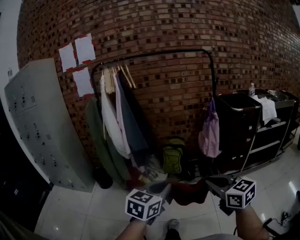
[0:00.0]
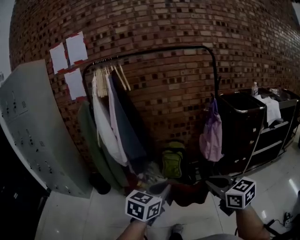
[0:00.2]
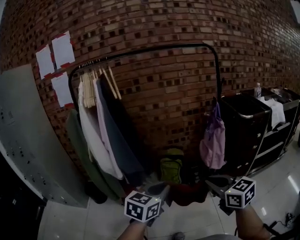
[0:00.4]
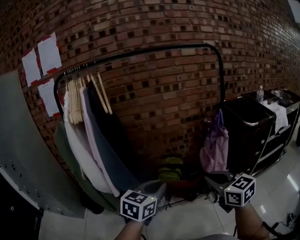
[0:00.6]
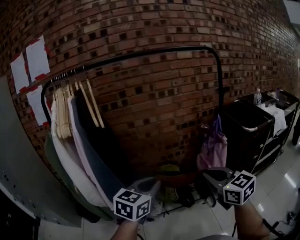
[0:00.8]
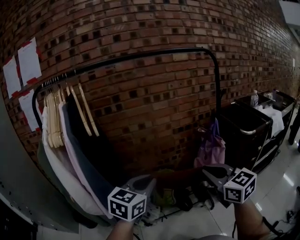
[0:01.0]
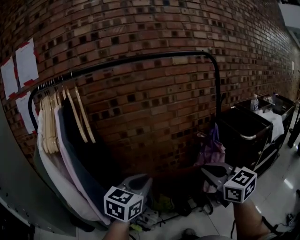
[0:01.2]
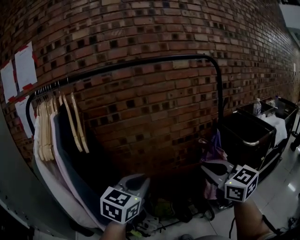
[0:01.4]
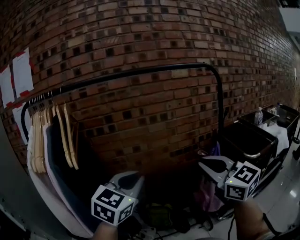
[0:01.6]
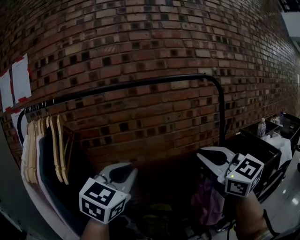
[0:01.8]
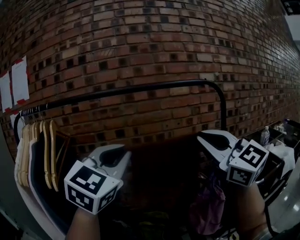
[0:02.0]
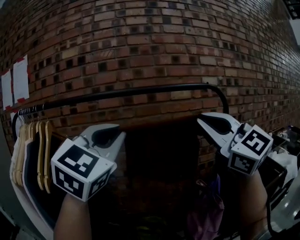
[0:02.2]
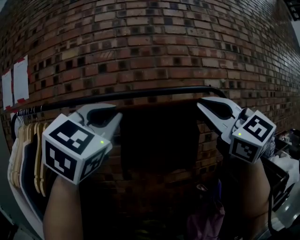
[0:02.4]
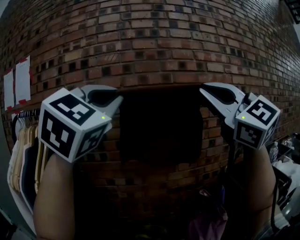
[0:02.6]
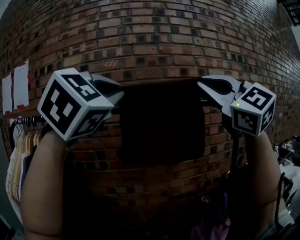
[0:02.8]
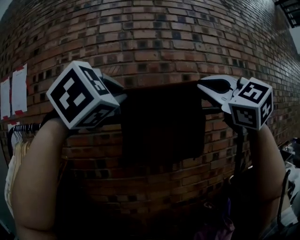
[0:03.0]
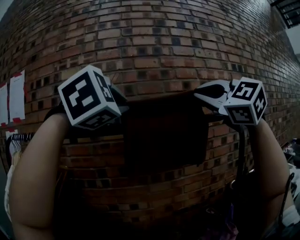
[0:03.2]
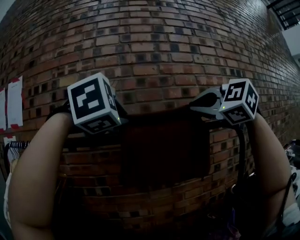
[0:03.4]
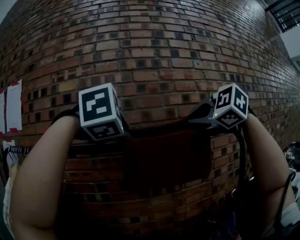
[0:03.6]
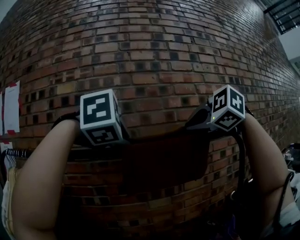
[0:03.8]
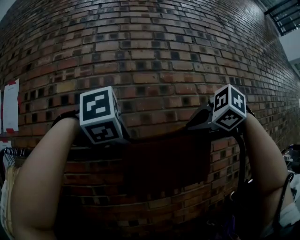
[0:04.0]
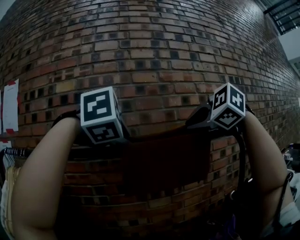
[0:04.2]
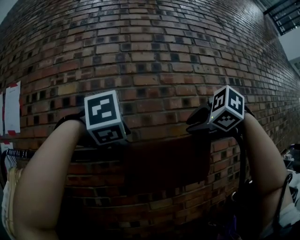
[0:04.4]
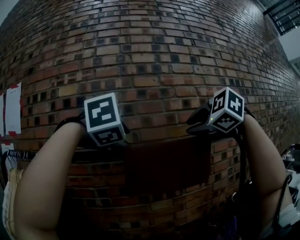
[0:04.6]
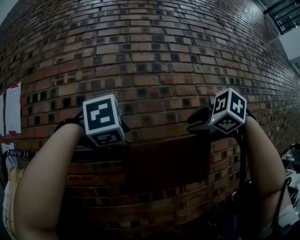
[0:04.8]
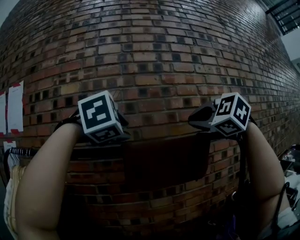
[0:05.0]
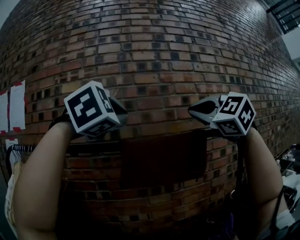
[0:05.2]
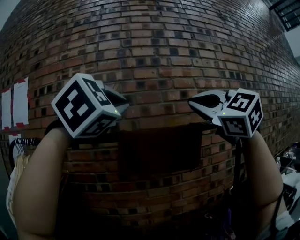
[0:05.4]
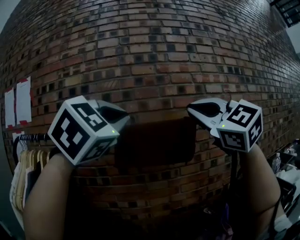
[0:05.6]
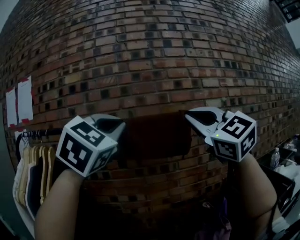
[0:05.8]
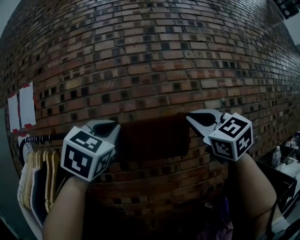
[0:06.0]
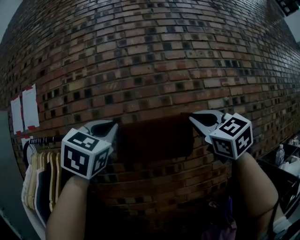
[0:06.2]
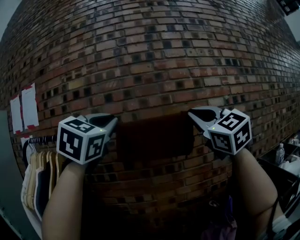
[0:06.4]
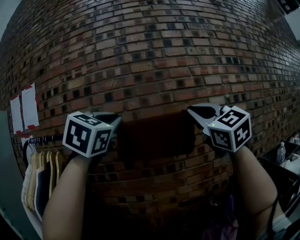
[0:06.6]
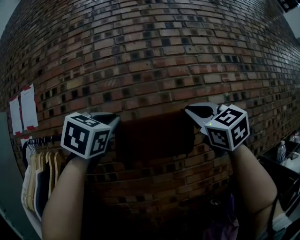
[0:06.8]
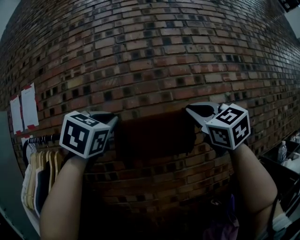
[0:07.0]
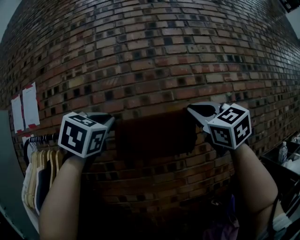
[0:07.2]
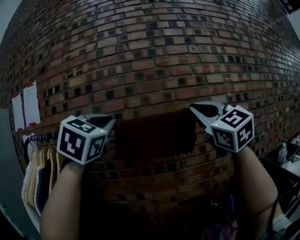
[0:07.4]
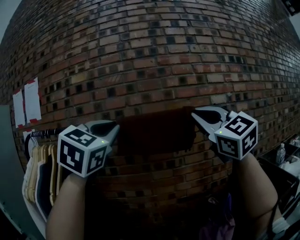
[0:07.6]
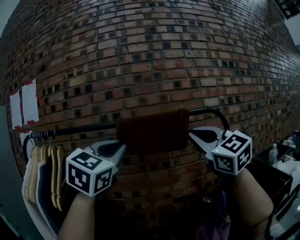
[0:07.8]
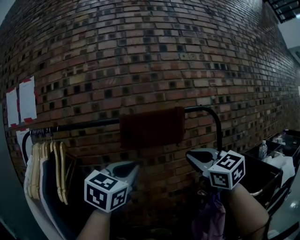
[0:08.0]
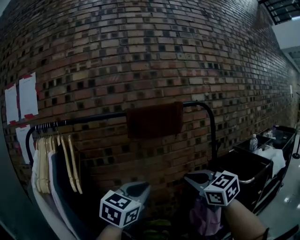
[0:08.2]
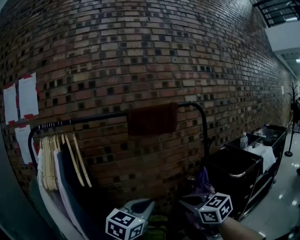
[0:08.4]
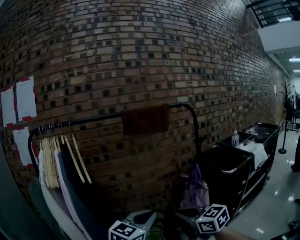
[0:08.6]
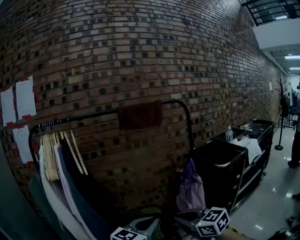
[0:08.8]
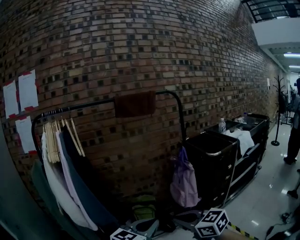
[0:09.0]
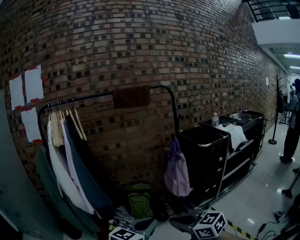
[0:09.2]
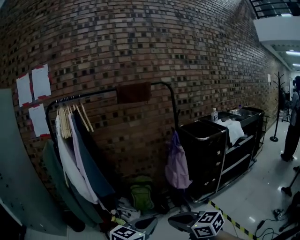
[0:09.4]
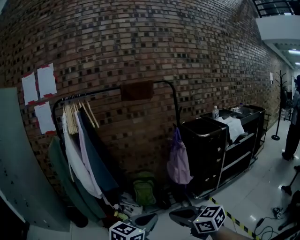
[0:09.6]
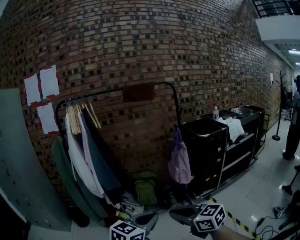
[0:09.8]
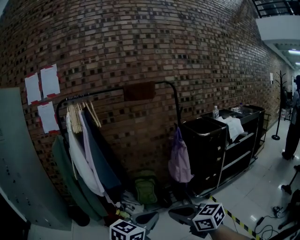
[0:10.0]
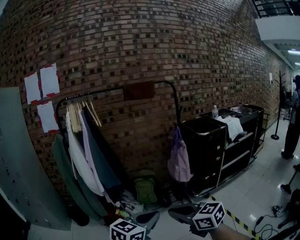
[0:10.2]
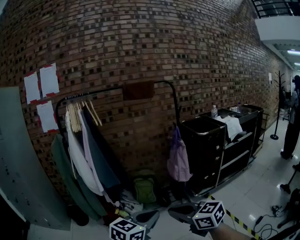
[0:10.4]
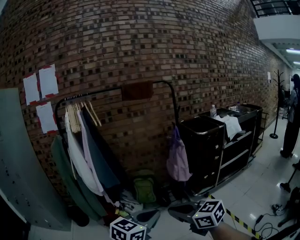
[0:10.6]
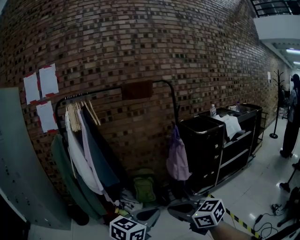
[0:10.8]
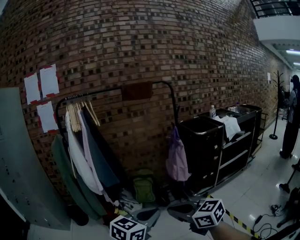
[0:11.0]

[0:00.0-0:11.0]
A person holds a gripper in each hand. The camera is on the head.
0:00.0 to 0:01.6: The two grippers travel together, forward, about 60 cm. The right gripper changes its angle by about 20 degrees; the left gripper changes its angle by roughly 20 degrees.
0:01.6 to 0:03.2: The grippers both shift upward and forward by roughly 40 cm. The left gripper rotates around the line of its fingers by approximately 50 degrees, clockwise from behind. Meanwhile the right gripper rotates around the line of its fingers by some 40 degrees, counterclockwise from behind.
0:03.2 to 0:04.8: The two grippers go approximately 5 cm forward. The left gripper opens its fingers. The right gripper rotates approximately 30 degrees, and opens.
0:04.8 to 0:06.2: Both grippers move backward, approximately 10 cm. The left gripper angles its fingers upward, by about 50 degrees, and closes up. The right gripper tips its fingers upward by about 40 degrees, and closes.
0:06.2 to 0:07.8: Both grippers travel together downward, roughly 5 cm.
0:07.8 to 0:09.4: Both grippers are carried backward, roughly 70 cm. The two grippers go roughly 40 cm downward. The right gripper turns by about 50 degrees. Meanwhile the left gripper changes its angle by about 50 degrees.
0:09.4 to 0:11.0: The two grippers go some 10 cm backward.

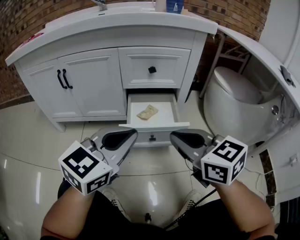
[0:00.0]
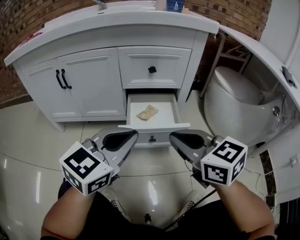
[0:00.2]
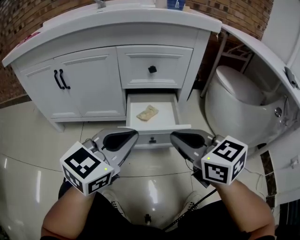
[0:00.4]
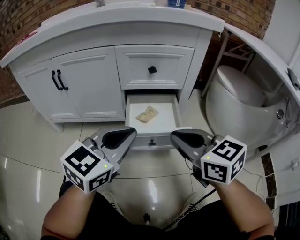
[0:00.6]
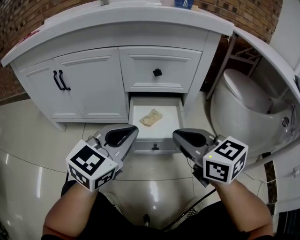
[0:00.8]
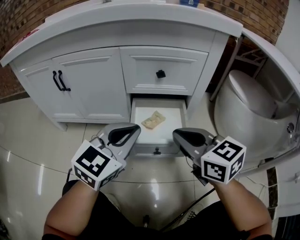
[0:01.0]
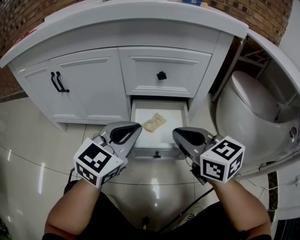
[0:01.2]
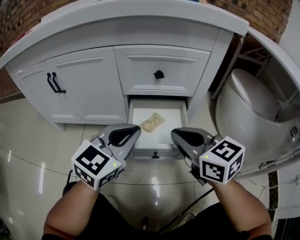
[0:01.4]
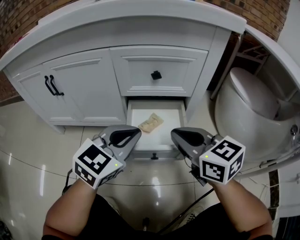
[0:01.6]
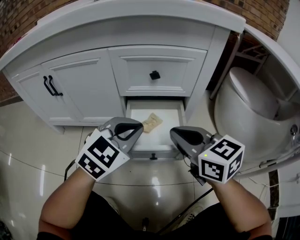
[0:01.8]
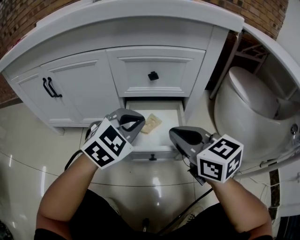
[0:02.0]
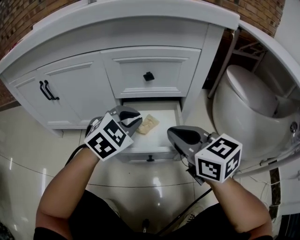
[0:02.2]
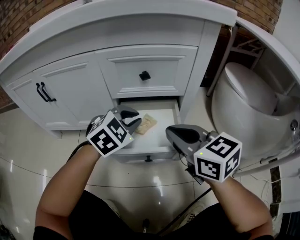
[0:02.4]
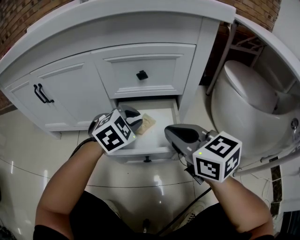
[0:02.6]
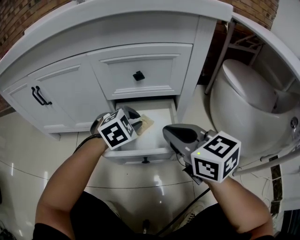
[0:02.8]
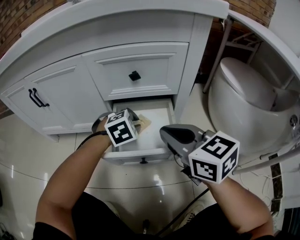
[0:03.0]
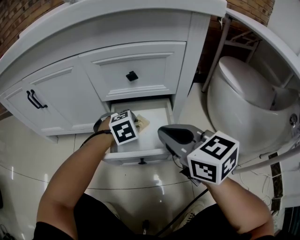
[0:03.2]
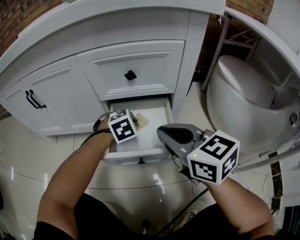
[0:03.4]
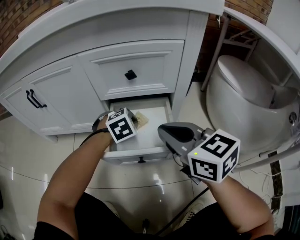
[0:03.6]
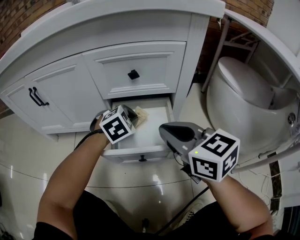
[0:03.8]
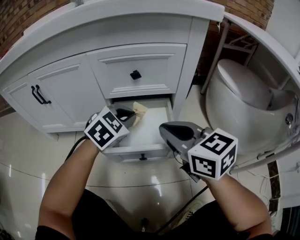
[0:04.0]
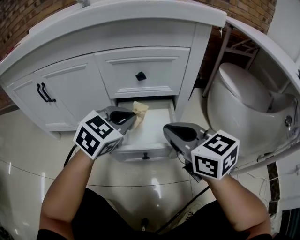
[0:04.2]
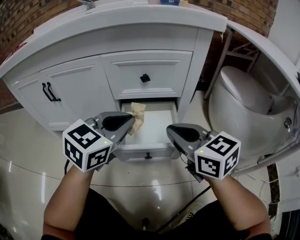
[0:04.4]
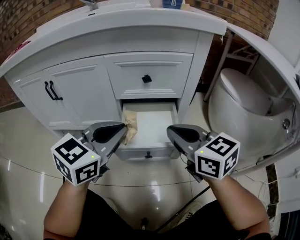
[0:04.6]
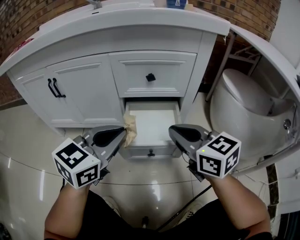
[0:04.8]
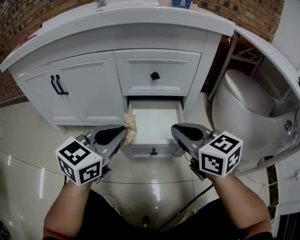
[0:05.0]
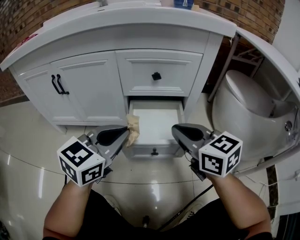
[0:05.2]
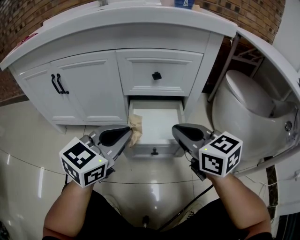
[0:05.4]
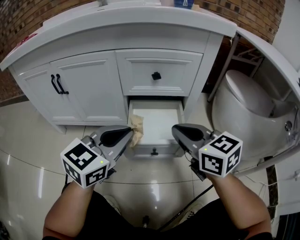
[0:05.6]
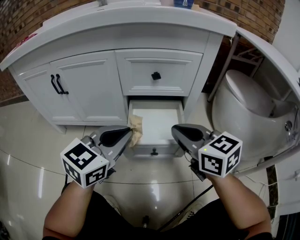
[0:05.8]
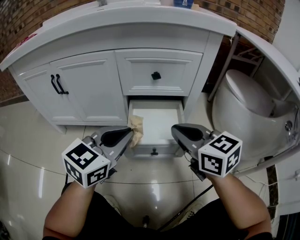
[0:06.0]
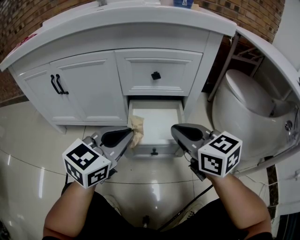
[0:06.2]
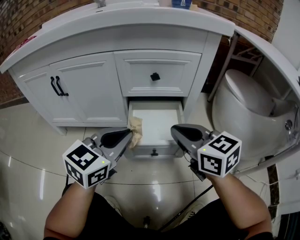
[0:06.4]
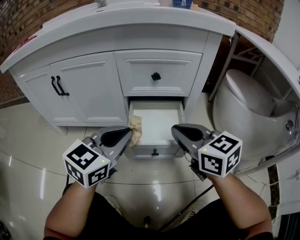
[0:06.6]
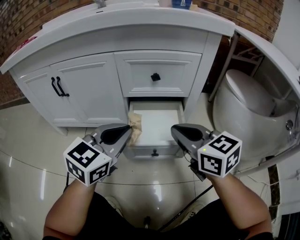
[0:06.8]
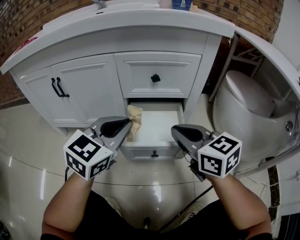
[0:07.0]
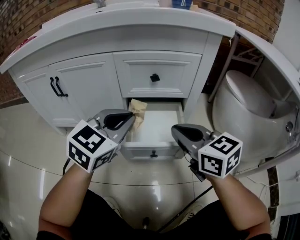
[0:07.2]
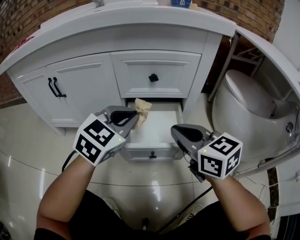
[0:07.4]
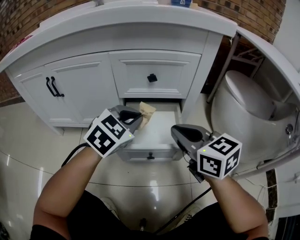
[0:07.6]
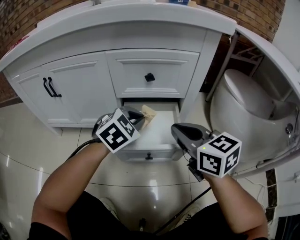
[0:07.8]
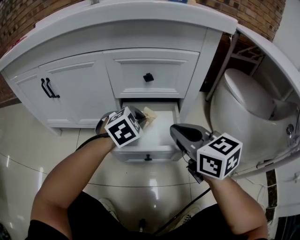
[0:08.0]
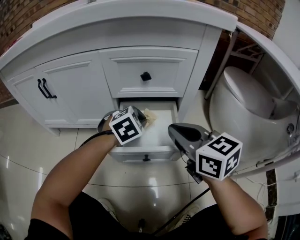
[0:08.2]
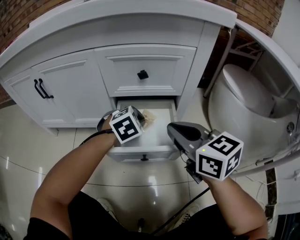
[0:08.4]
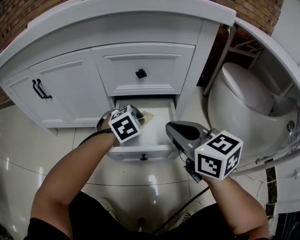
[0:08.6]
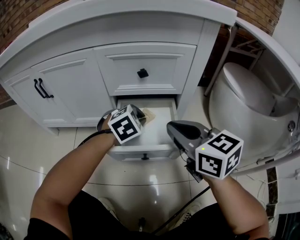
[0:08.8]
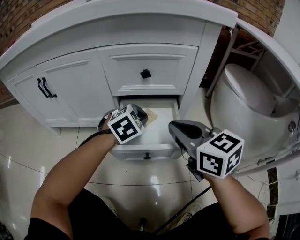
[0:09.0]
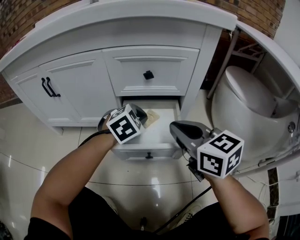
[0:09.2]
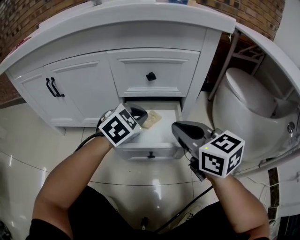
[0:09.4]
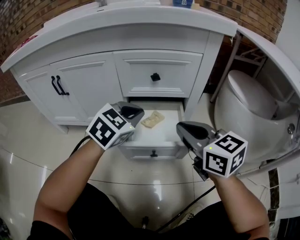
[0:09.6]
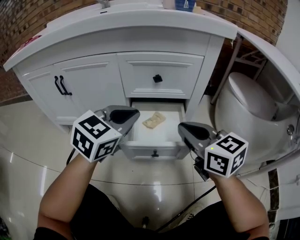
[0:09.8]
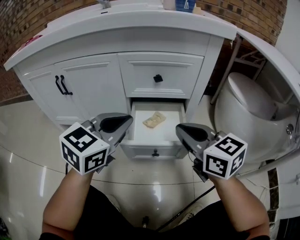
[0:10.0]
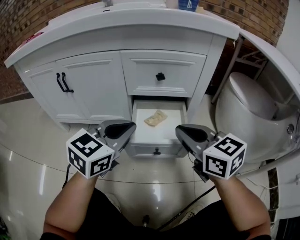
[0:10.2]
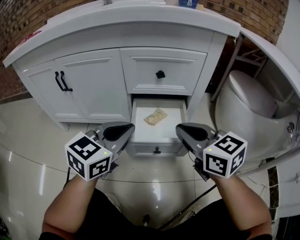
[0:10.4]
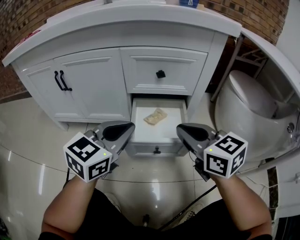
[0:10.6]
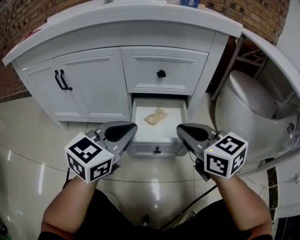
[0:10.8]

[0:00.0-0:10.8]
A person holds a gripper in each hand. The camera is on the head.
0:00.0 to 0:01.6: The left gripper moves forward and downward, about 15 cm, while the right gripper travels forward by some 15 cm.
0:01.6 to 0:03.0: The left gripper goes approximately 20 cm downward and forward, and points its fingers about 40 degrees further downward.
0:03.0 to 0:04.6: The left gripper shifts some 25 cm upward and backward, and tips its fingers upward by about 40 degrees.
0:04.6 to 0:06.2: The grippers stay close to where they were, moving slightly.
0:06.2 to 0:07.8: The left gripper travels forward, downward and to the right by approximately 15 cm, and turns by about 30 degrees.
0:09.2 to 0:10.8: The left gripper heads upward, backward and to the left, covering some 20 cm, and tips its fingers upward by some 30 degrees.

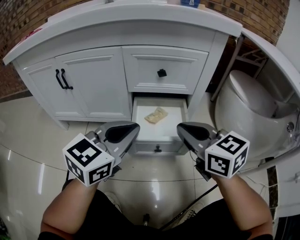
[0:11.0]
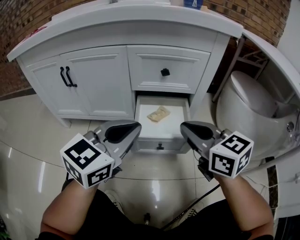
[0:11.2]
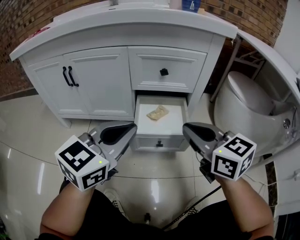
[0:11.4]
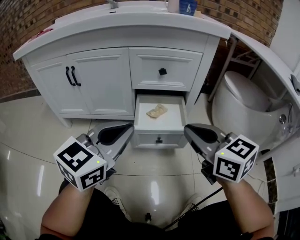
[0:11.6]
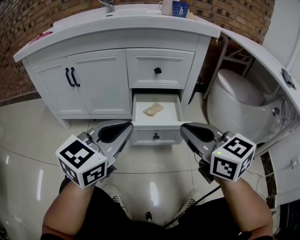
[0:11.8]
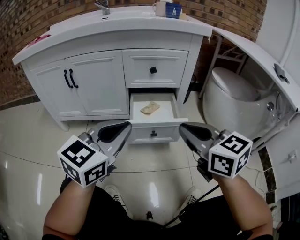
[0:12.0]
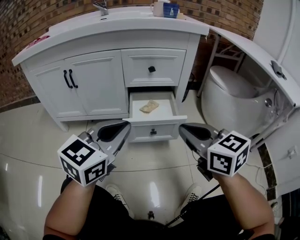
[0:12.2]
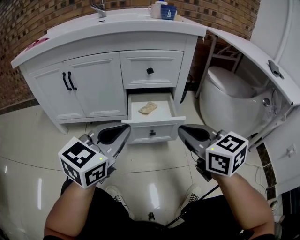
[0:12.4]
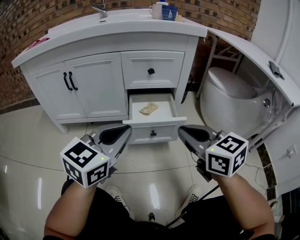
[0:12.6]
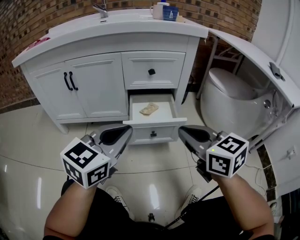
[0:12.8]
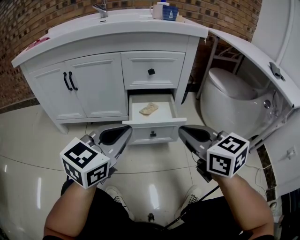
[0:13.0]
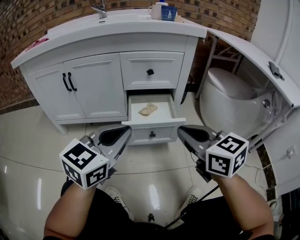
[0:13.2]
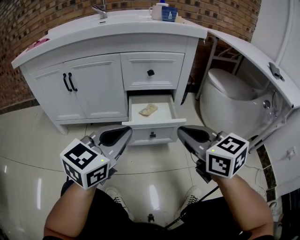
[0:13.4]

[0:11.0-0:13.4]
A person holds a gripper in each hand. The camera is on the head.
0:11.0 to 0:12.2: The two grippers go approximately 10 cm backward.
0:12.2 to 0:13.4: Neither gripper changes place.
